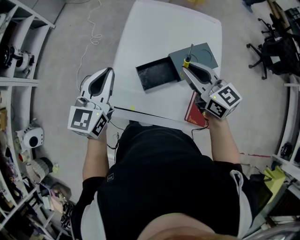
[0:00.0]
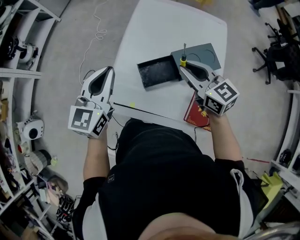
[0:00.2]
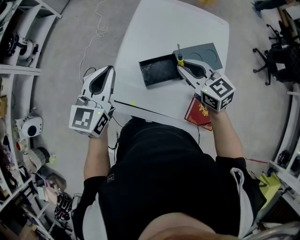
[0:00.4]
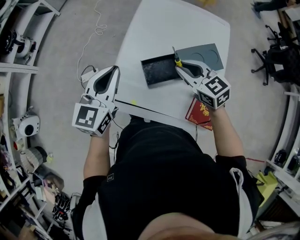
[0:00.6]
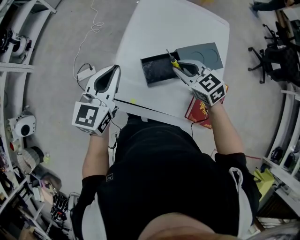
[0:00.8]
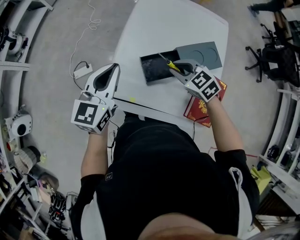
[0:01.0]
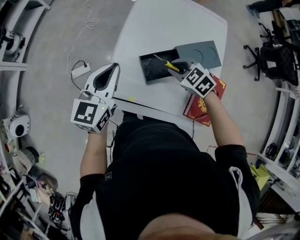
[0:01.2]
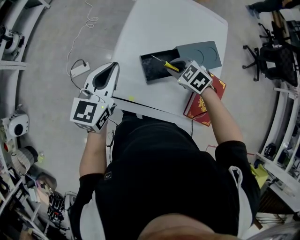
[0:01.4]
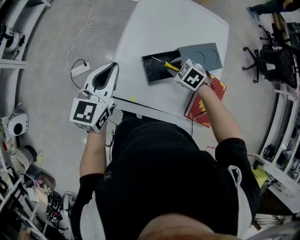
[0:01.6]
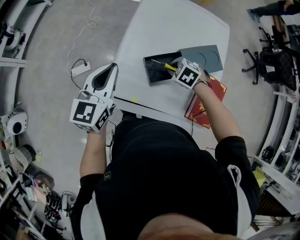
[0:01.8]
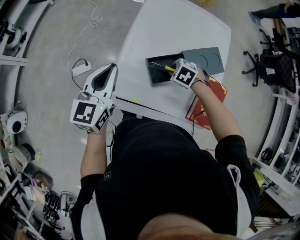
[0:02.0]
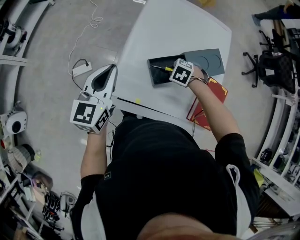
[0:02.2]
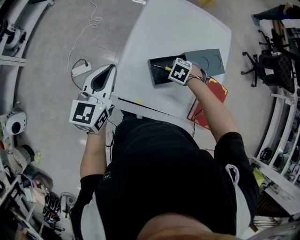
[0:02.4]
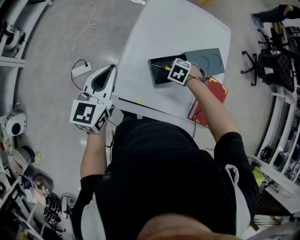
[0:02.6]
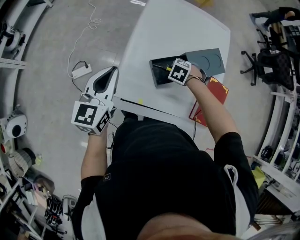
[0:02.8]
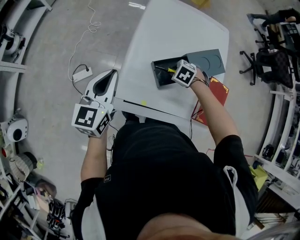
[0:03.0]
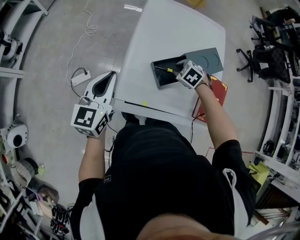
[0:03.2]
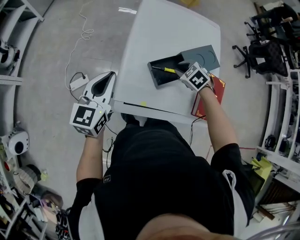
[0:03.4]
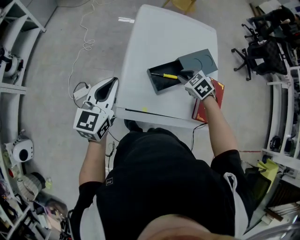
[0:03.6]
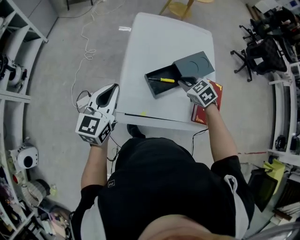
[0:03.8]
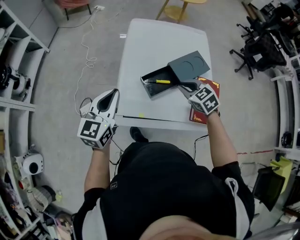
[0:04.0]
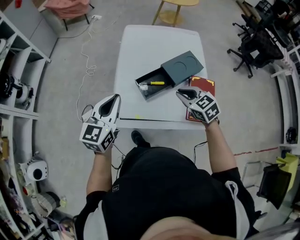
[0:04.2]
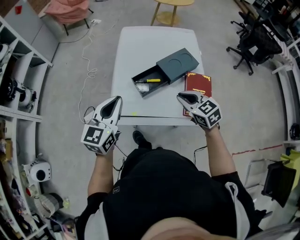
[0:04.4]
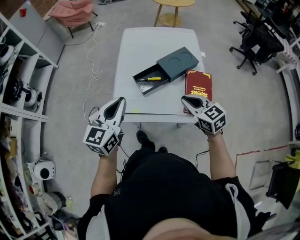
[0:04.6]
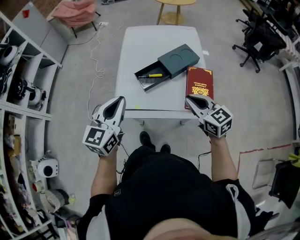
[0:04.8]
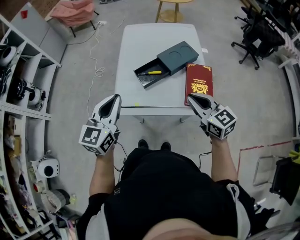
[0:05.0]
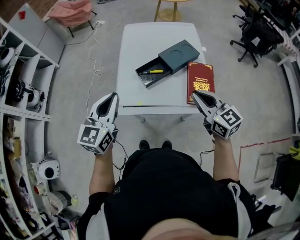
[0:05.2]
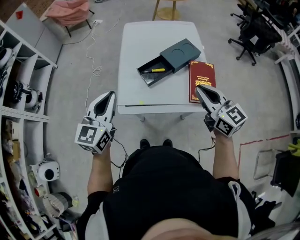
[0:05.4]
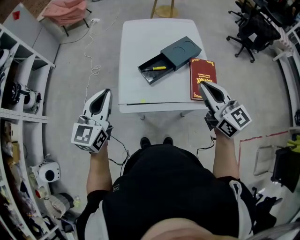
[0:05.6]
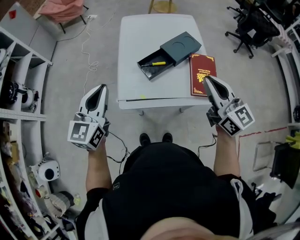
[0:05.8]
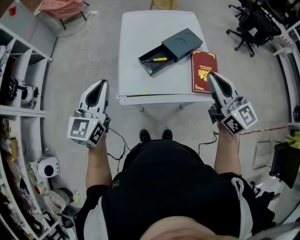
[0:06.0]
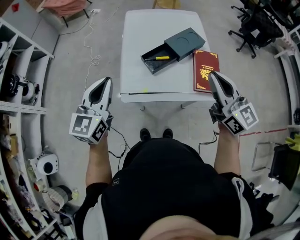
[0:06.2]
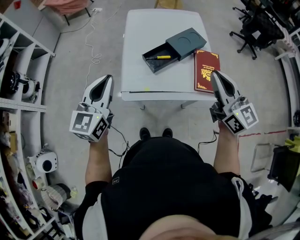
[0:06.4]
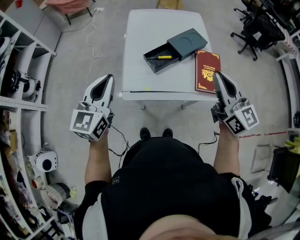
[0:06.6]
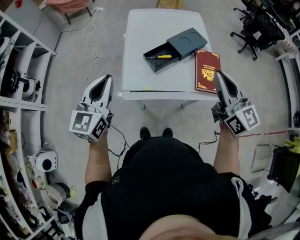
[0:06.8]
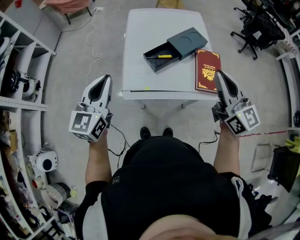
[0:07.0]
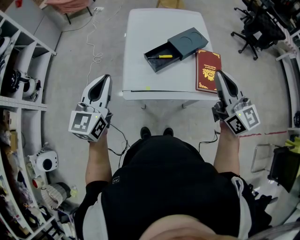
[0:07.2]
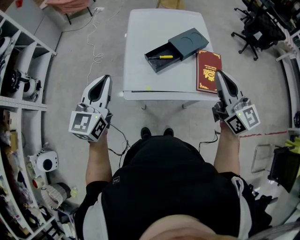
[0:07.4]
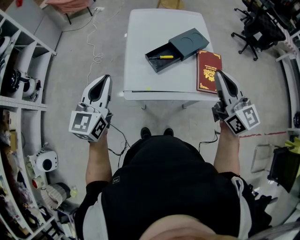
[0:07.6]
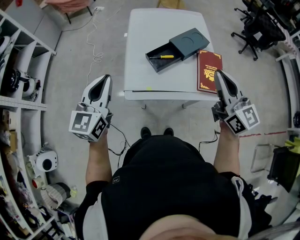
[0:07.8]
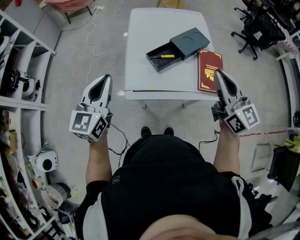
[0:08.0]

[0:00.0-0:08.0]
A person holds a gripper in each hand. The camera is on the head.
0:00.0 to 0:01.6: The right gripper heads downward, covering about 20 cm, and tilts its fingers about 50 degrees downward. The left gripper goes some 10 cm downward and to the left.
0:01.6 to 0:03.2: The left gripper changes place by some 10 cm.
0:03.2 to 0:04.8: The left gripper changes place by some 25 cm; the right gripper changes place by approximately 35 cm, and tips its fingers upward by some 50 degrees.
0:04.8 to 0:06.4: The right gripper travels upward by roughly 10 cm, and swivels approximately 30 degrees, while the left gripper heads to the left, covering some 10 cm.
0:06.4 to 0:08.0: There are only small adjustments of the grippers.

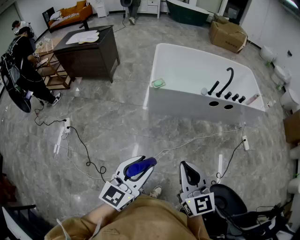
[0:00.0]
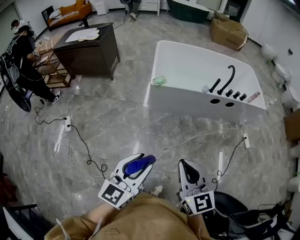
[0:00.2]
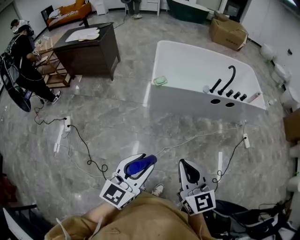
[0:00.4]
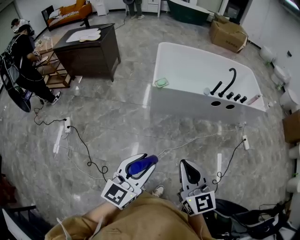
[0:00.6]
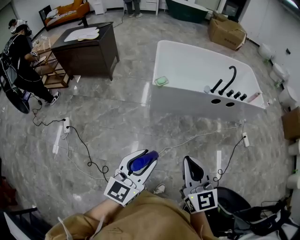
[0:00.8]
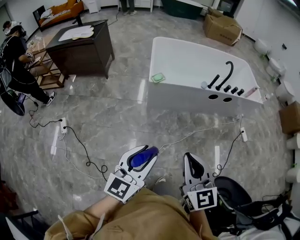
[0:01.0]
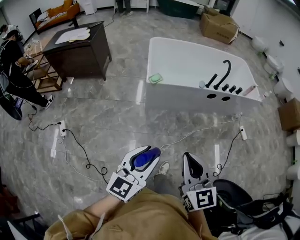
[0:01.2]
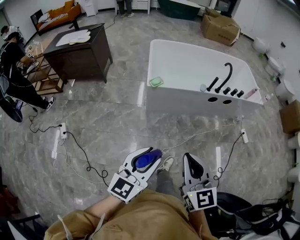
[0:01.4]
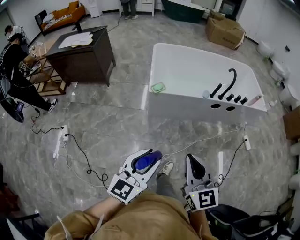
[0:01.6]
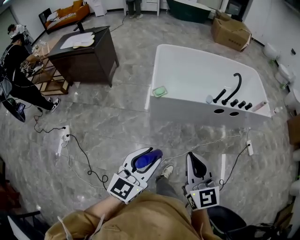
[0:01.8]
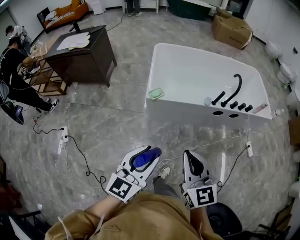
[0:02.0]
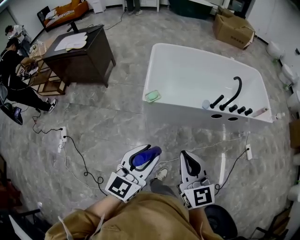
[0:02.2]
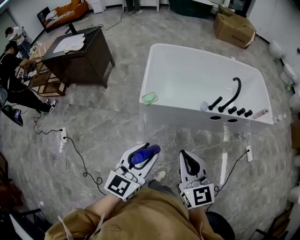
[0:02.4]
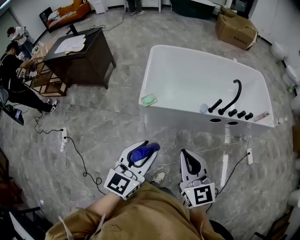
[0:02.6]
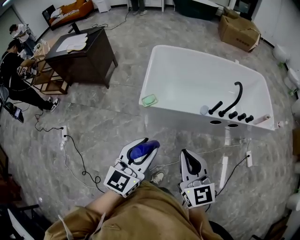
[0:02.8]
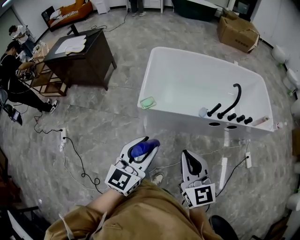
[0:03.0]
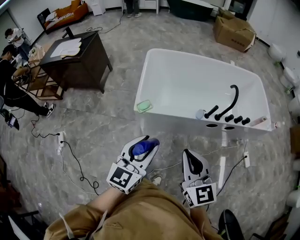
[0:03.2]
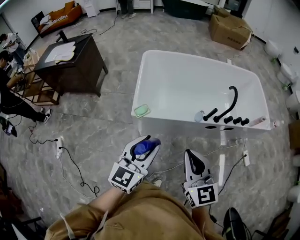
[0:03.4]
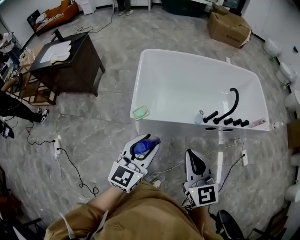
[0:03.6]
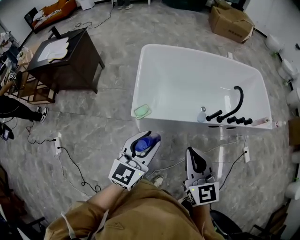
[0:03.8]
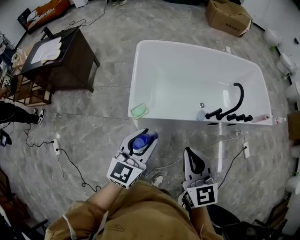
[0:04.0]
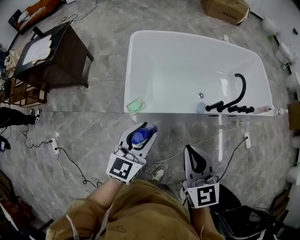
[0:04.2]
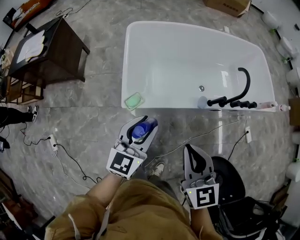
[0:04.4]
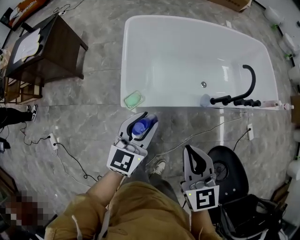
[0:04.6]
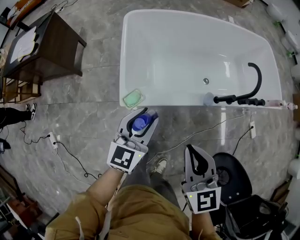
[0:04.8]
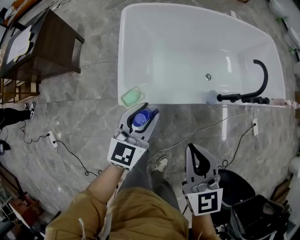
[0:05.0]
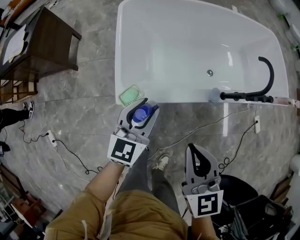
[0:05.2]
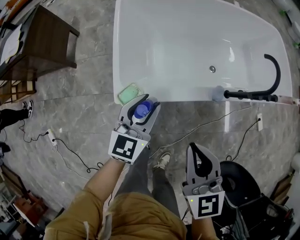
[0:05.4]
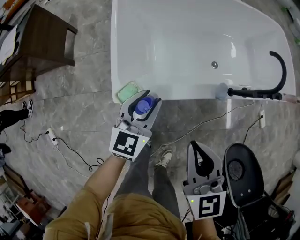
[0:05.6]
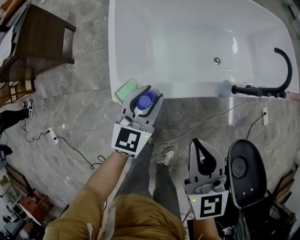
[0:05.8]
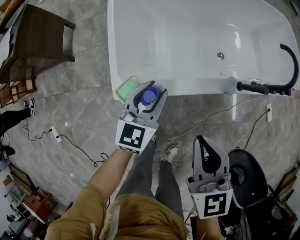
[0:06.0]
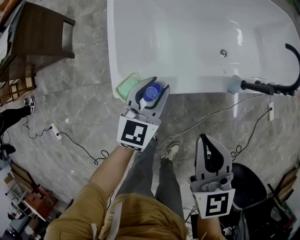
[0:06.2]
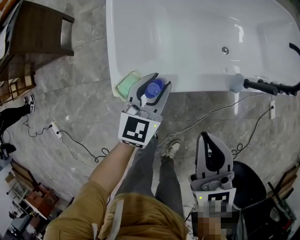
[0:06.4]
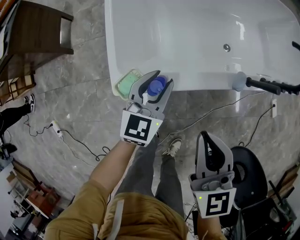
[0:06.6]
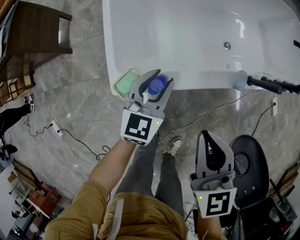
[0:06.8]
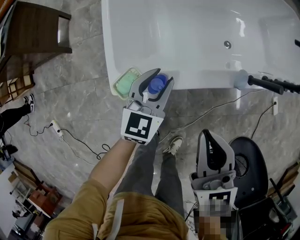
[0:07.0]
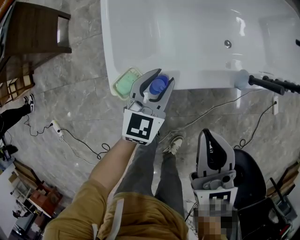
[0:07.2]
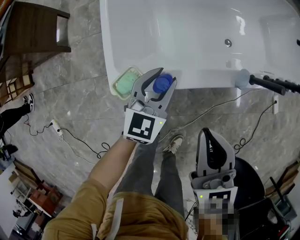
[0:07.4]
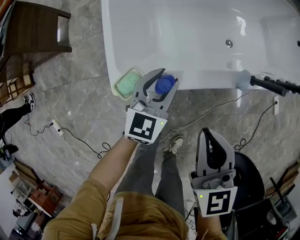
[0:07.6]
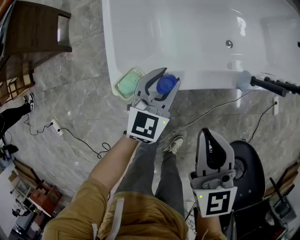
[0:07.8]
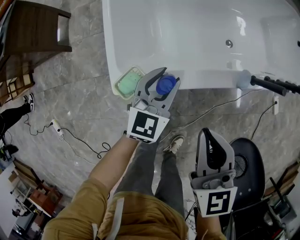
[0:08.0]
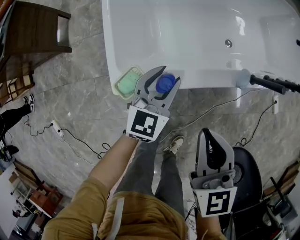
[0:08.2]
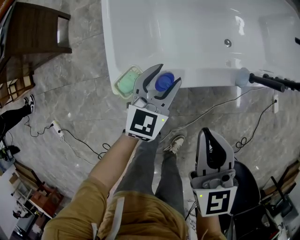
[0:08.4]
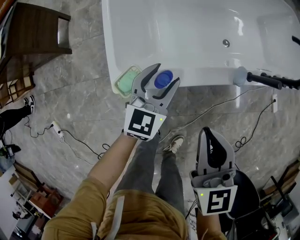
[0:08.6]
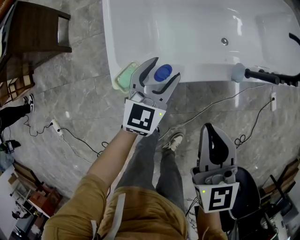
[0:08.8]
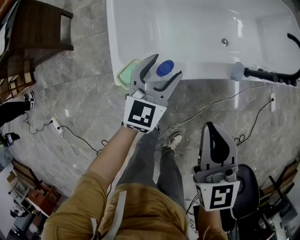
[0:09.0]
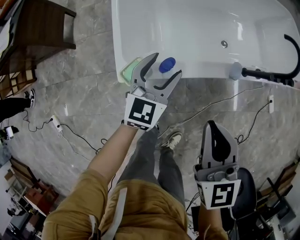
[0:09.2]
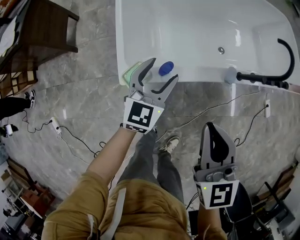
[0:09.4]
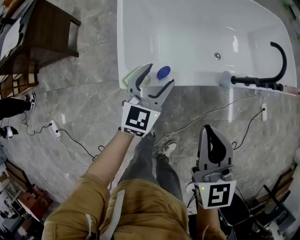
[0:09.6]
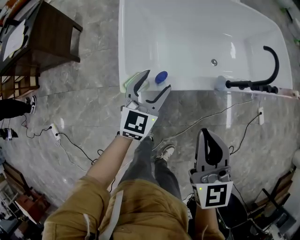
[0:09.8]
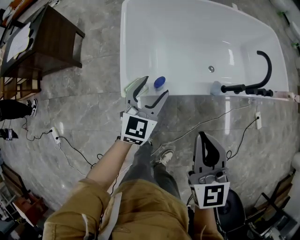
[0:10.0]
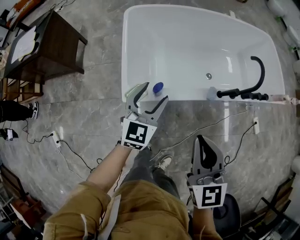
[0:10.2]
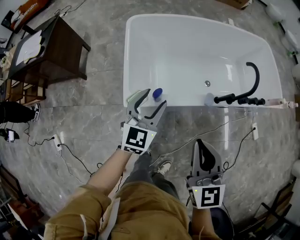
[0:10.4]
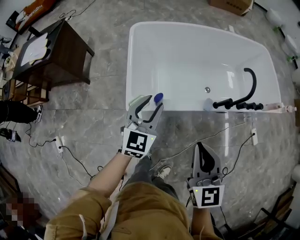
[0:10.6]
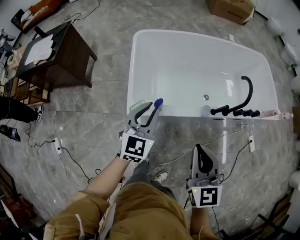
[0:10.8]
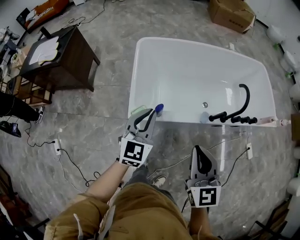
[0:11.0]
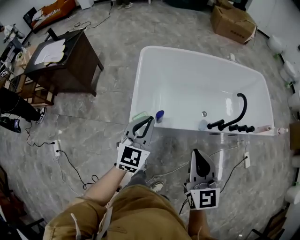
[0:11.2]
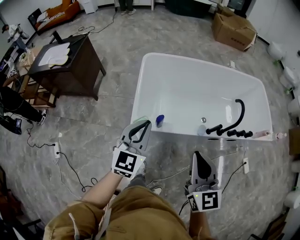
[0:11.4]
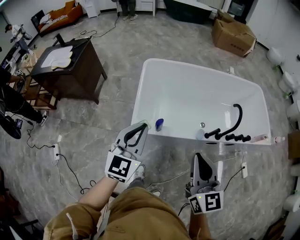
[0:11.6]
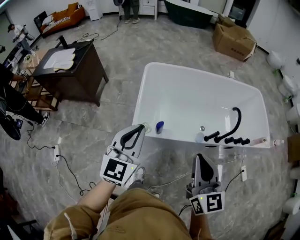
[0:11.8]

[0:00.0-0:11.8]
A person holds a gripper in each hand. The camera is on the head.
0:00.0 to 0:01.4: The grippers both shift forward by some 5 cm.
0:01.4 to 0:03.0: The right gripper travels forward and to the right by some 30 cm, while the left gripper heads forward, covering roughly 30 cm.
0:03.0 to 0:04.4: The left gripper moves forward and downward, about 25 cm. The right gripper goes approximately 20 cm forward.
0:04.4 to 0:06.0: The two grippers go about 25 cm downward and forward.
0:06.0 to 0:07.4: The left gripper goes approximately 5 cm downward. Meanwhile the right gripper changes place by about 5 cm.
0:07.4 to 0:08.8: The left gripper opens up.
0:08.8 to 0:10.4: The right gripper shifts about 20 cm upward and backward. The left gripper moves upward, some 20 cm.
0:10.4 to 0:11.8: The right gripper travels upward by some 15 cm. The left gripper shifts some 25 cm upward and backward, and closes up.

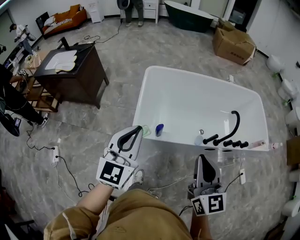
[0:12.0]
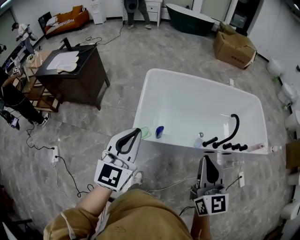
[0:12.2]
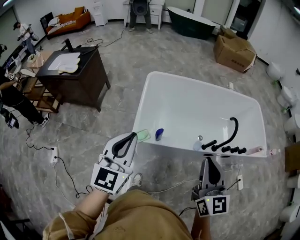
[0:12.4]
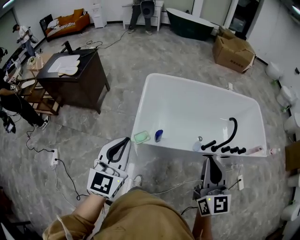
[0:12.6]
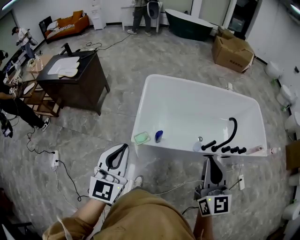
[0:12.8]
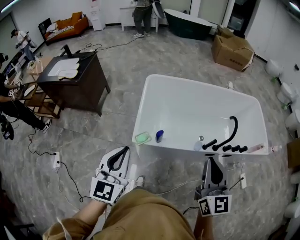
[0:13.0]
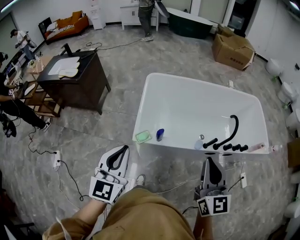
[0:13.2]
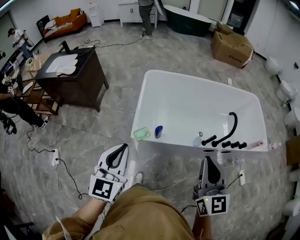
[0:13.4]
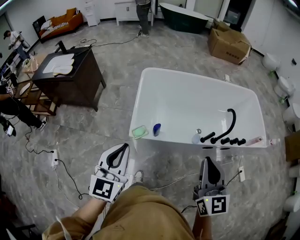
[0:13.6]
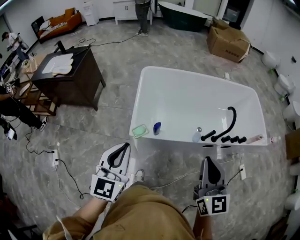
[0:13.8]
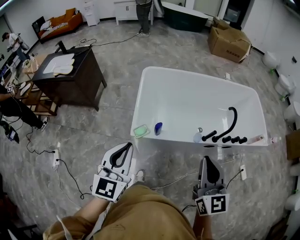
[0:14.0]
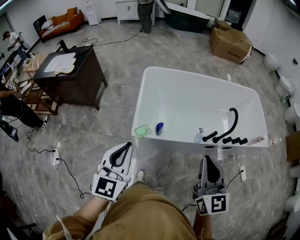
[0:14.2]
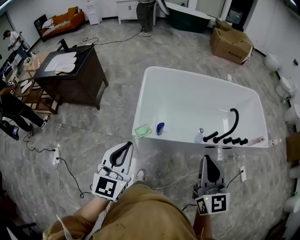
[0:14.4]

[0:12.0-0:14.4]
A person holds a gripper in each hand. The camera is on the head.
0:12.0 to 0:13.2: The left gripper shifts approximately 5 cm backward.
0:13.2 to 0:14.4: The grippers make only small movements.

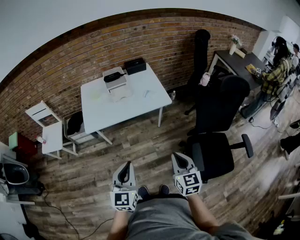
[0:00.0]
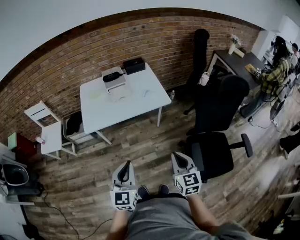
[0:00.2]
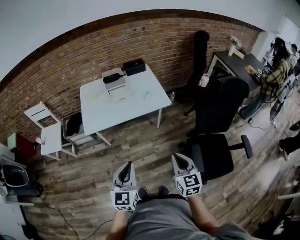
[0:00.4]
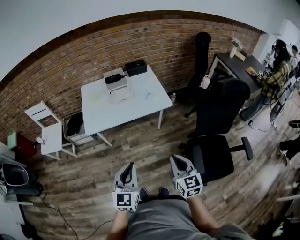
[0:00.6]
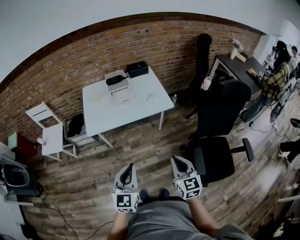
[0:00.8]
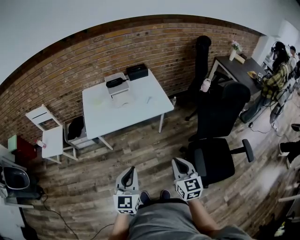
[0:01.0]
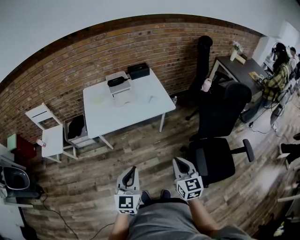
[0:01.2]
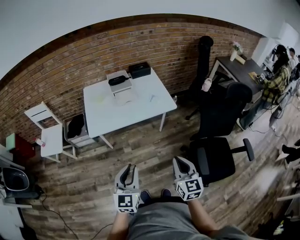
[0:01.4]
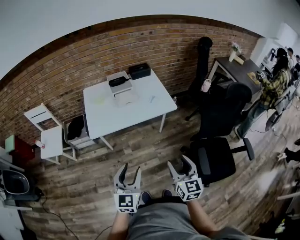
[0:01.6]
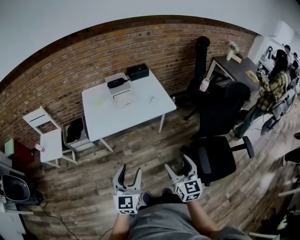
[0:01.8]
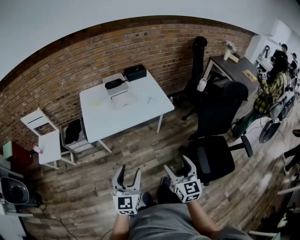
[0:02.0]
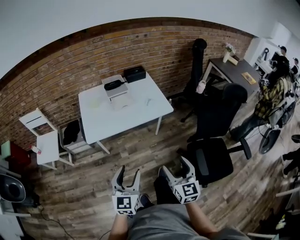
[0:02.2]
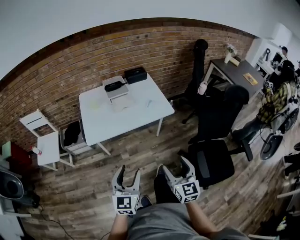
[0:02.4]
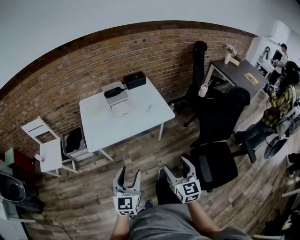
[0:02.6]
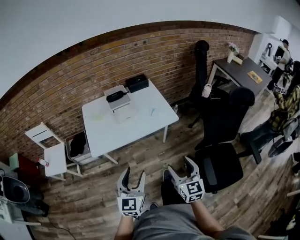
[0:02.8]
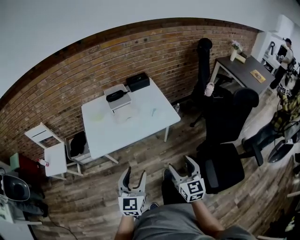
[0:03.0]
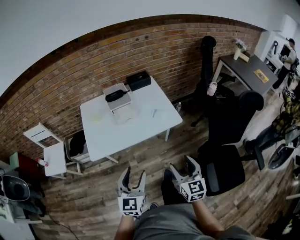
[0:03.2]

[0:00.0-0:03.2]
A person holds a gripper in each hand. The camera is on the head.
0:00.0 to 0:01.6: Both grippers travel together to the left, about 5 cm. The left gripper opens up. The right gripper opens its fingers.
0:01.6 to 0:03.2: The two grippers go some 15 cm forward.
